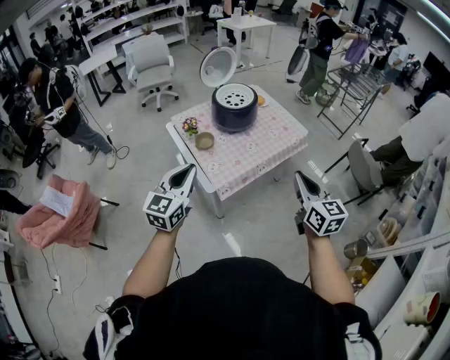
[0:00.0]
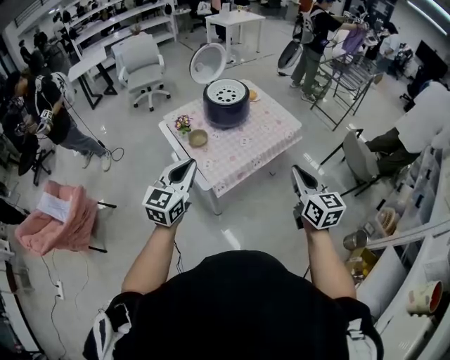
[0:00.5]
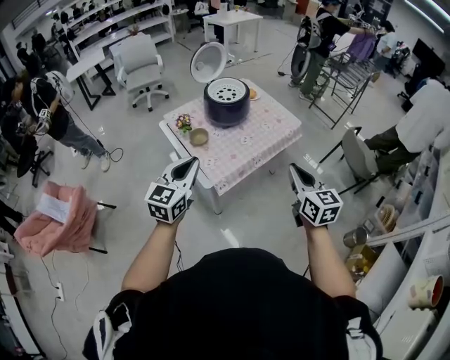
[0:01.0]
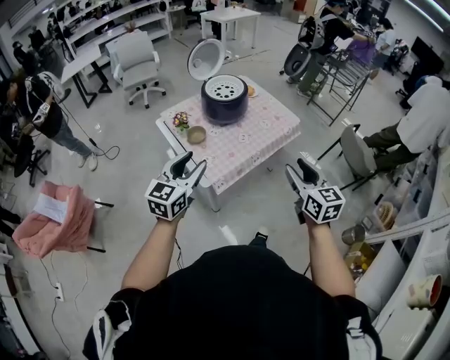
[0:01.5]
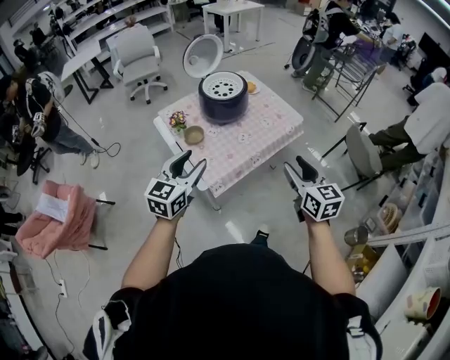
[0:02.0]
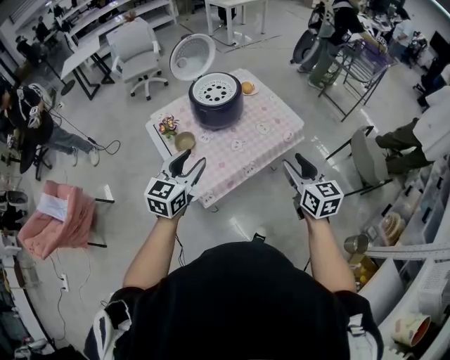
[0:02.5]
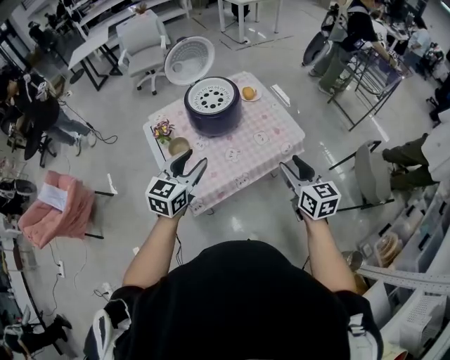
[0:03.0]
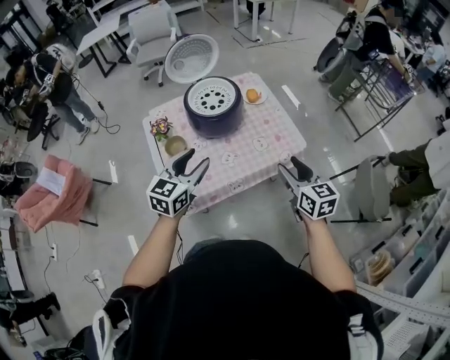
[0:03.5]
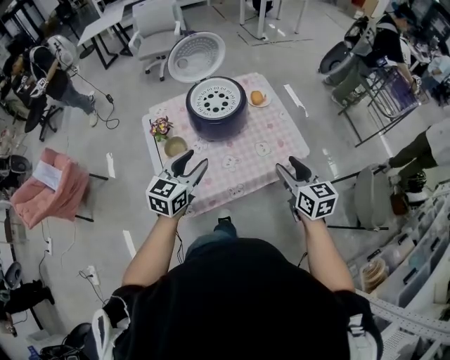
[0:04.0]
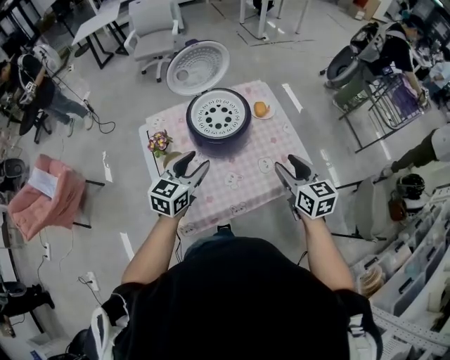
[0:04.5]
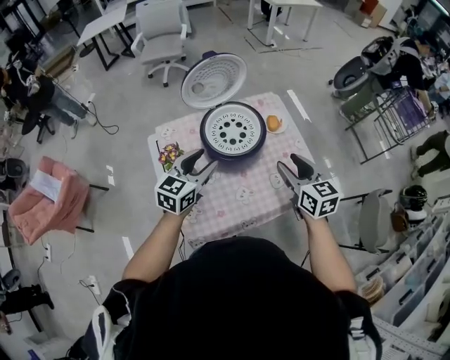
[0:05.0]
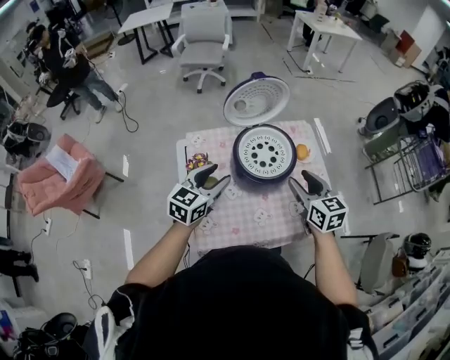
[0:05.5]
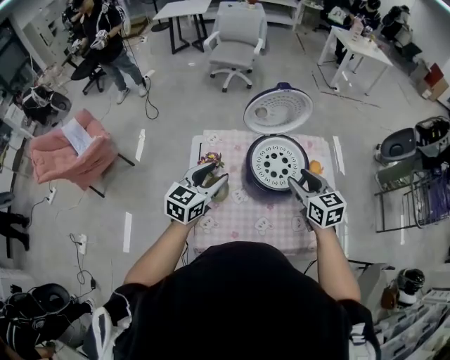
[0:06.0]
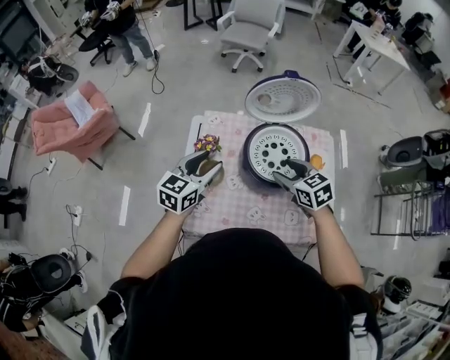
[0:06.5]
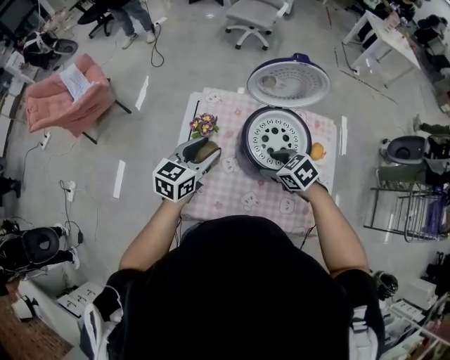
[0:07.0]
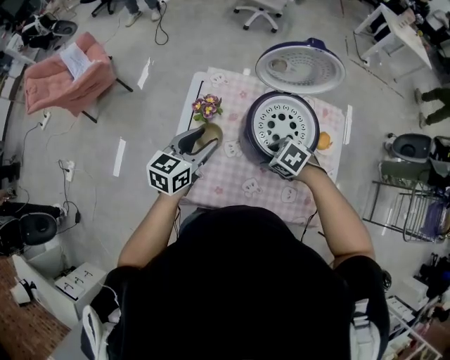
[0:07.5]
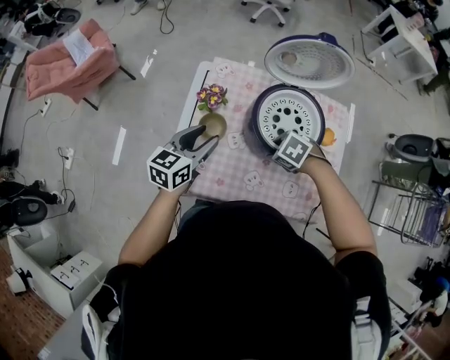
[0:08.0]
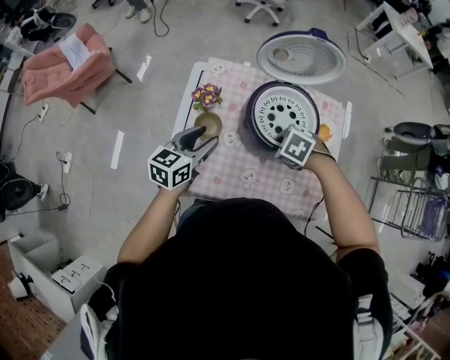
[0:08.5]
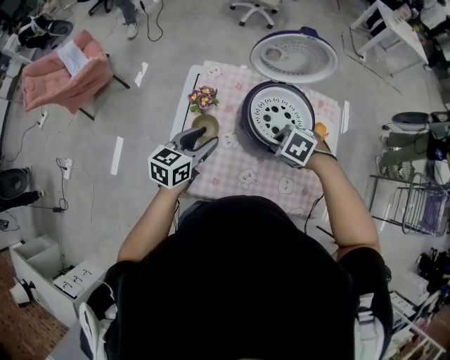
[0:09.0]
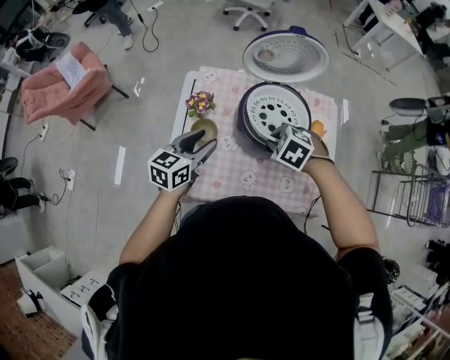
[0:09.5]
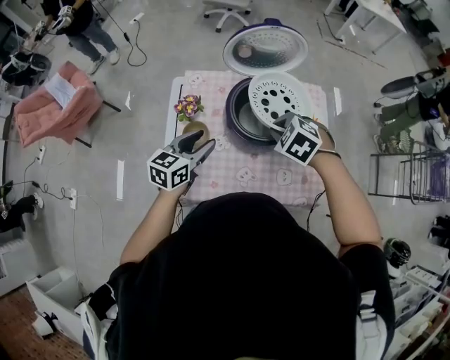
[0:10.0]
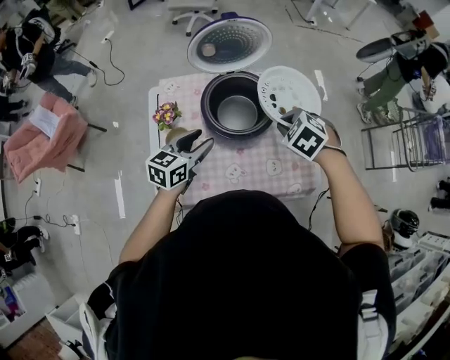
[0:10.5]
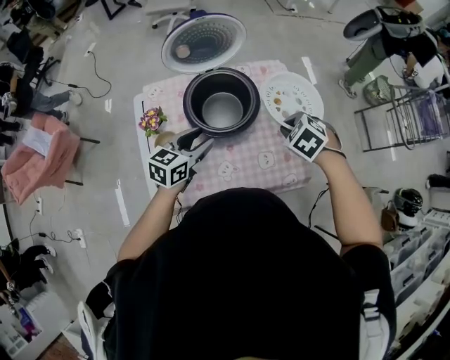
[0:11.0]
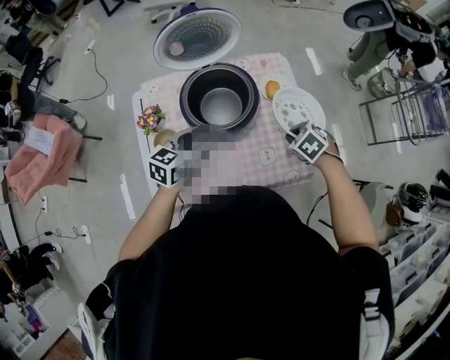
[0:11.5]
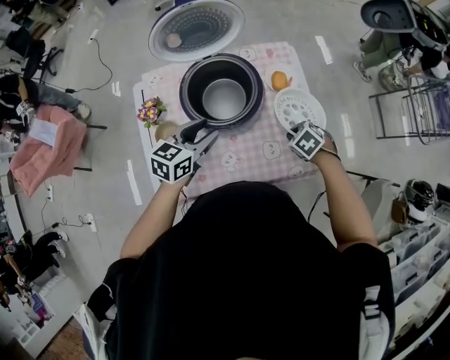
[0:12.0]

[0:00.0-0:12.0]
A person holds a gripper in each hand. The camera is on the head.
0:00.0 to 0:02.0: Both grippers move forward, approximately 10 cm. The left gripper opens its fingers. Meanwhile the right gripper opens its fingers.
0:02.0 to 0:04.0: The grippers both shift forward and to the right by roughly 30 cm. The right gripper rotates some 20 degrees.
0:04.0 to 0:06.0: The two grippers go approximately 30 cm forward and to the left. The right gripper turns by roughly 20 degrees.
0:06.0 to 0:08.0: The left gripper is displaced downward by about 10 cm, and swivels approximately 20 degrees. Meanwhile the right gripper moves downward, approximately 20 cm, and tips its fingers downward by about 50 degrees.
0:08.0 to 0:10.0: The right gripper heads upward, covering approximately 10 cm, changes its angle by approximately 20 degrees, and closes up. The left gripper changes place by about 5 cm.
0:10.0 to 0:12.0: The right gripper ends up approximately 30 cm from where it was, and swivels approximately 30 degrees; the left gripper changes place by some 15 cm.

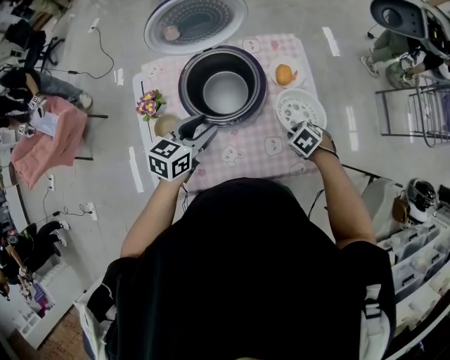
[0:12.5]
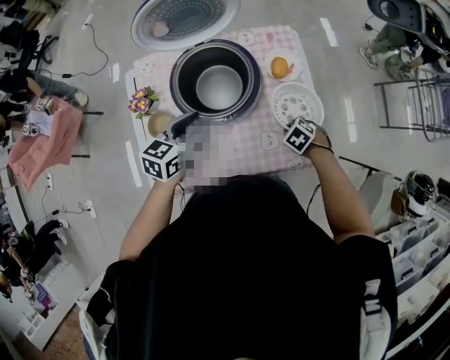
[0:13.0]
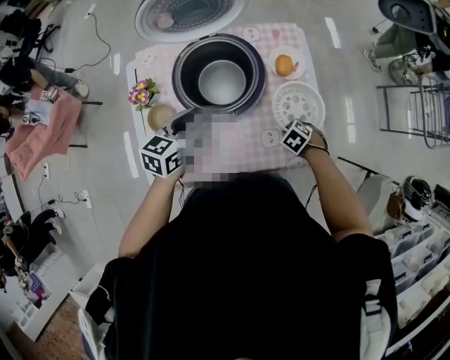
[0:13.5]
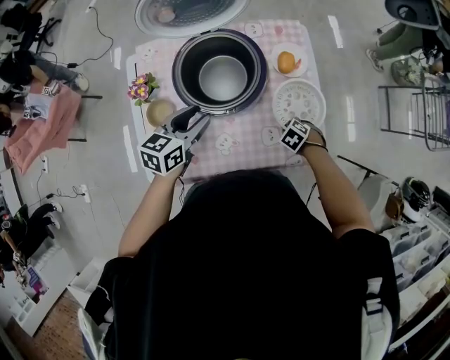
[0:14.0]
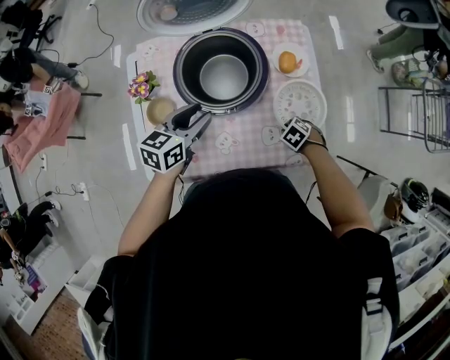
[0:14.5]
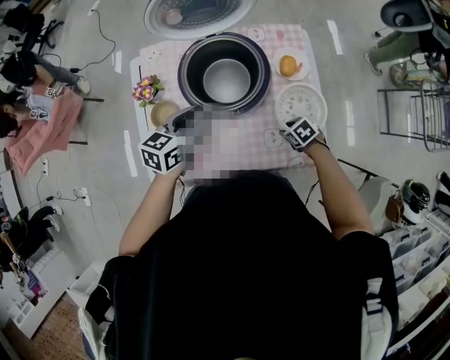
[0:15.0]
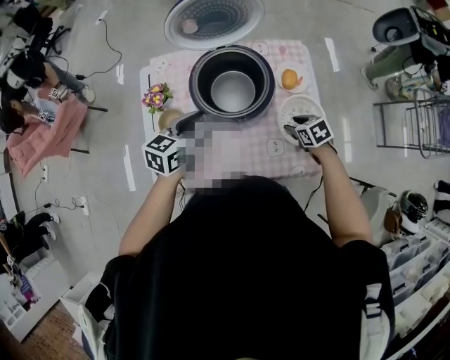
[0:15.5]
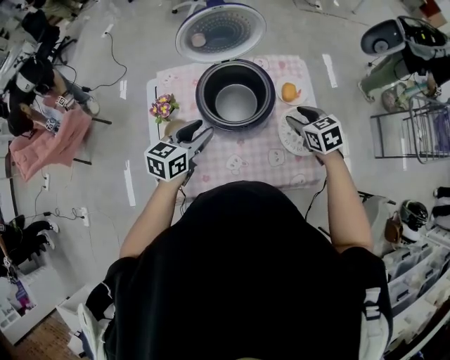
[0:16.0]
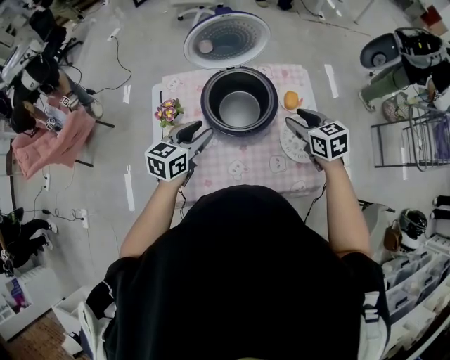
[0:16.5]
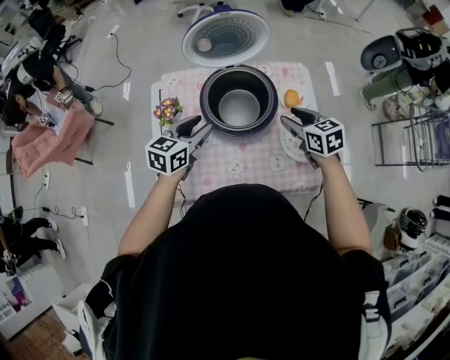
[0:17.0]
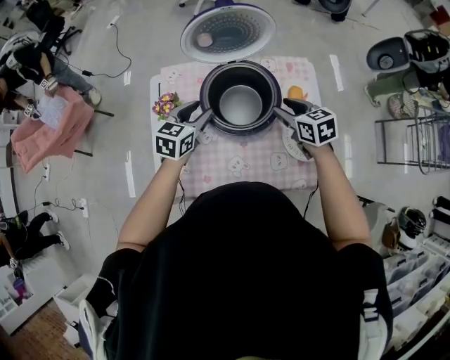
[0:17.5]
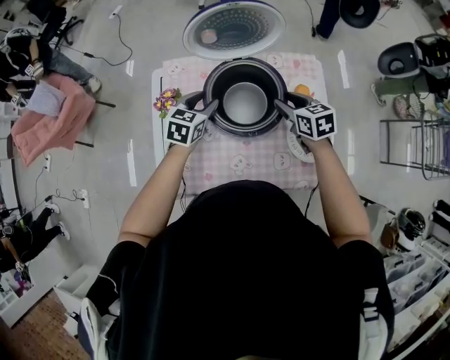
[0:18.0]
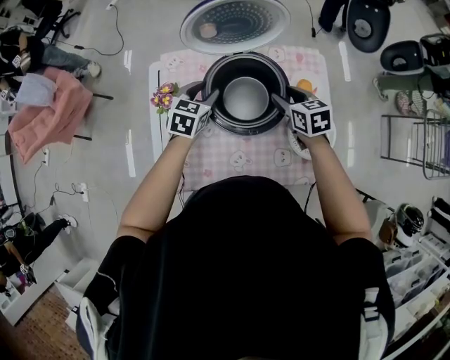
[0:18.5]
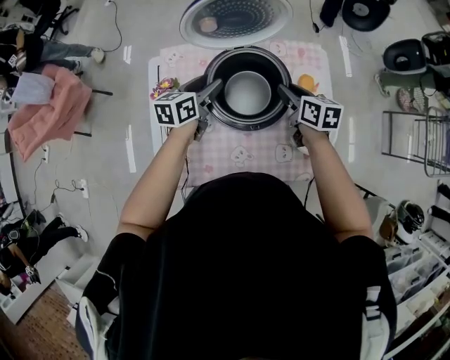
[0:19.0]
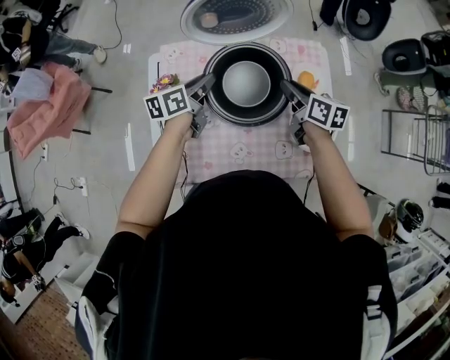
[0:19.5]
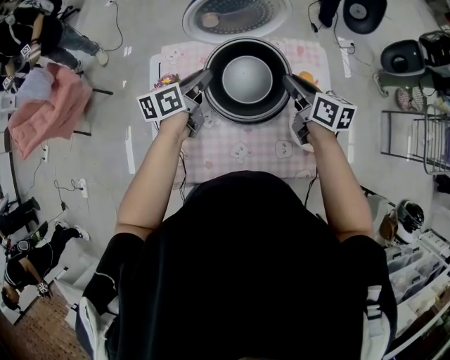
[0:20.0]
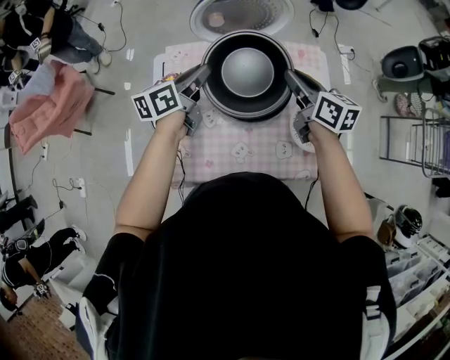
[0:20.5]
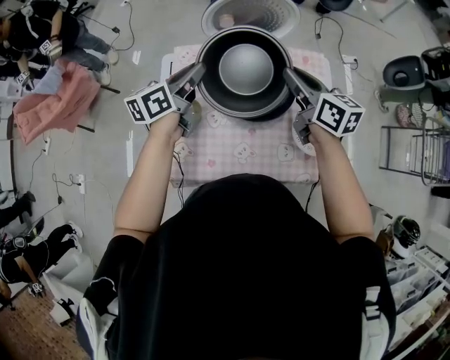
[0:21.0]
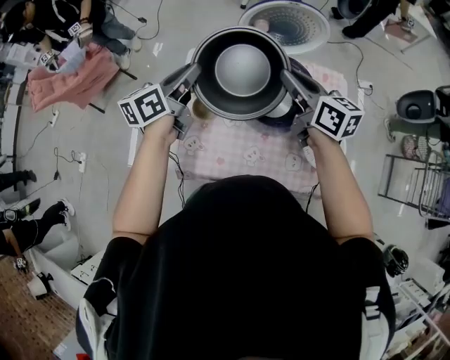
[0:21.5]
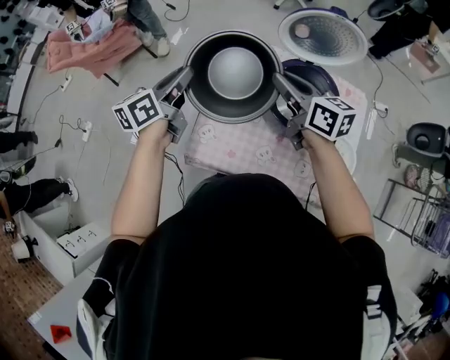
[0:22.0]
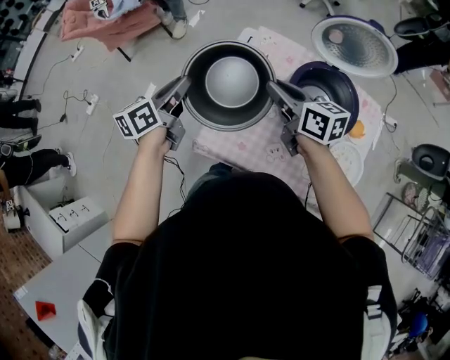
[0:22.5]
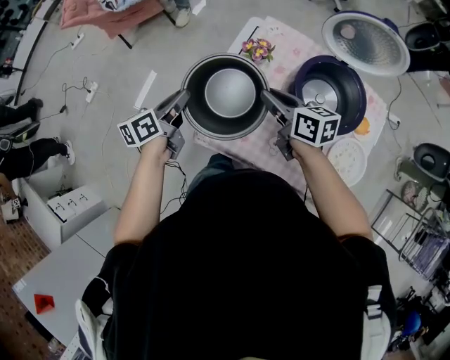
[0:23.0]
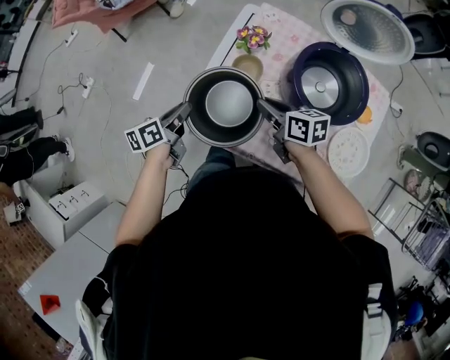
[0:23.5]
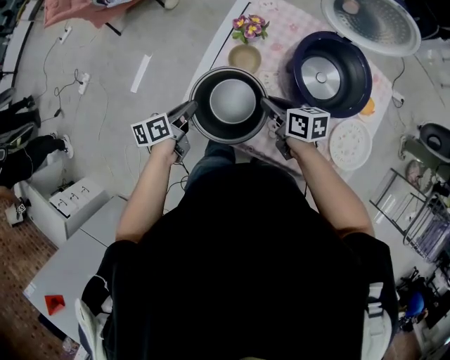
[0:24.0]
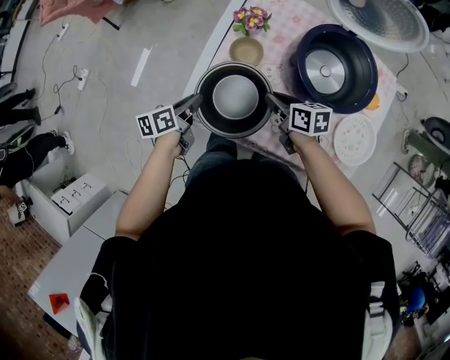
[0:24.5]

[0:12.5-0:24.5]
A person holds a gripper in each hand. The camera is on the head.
0:12.5 to 0:14.5: The right gripper shifts roughly 10 cm downward.
0:14.5 to 0:16.5: The right gripper moves upward, roughly 30 cm, points its fingers roughly 40 degrees further upward, and opens up, while the left gripper moves upward, approximately 5 cm.
0:16.5 to 0:18.5: The right gripper moves forward, downward and to the left, some 15 cm, while the left gripper goes about 15 cm forward and downward, and rotates about 20 degrees.
0:18.5 to 0:20.5: Both grippers move upward, approximately 10 cm. The left gripper changes its angle by roughly 50 degrees, and closes up. Meanwhile the right gripper rotates some 30 degrees, and closes up.
0:20.5 to 0:22.5: The right gripper ends up about 30 cm from where it was, and swivels about 40 degrees. Meanwhile the left gripper reaches about 10 cm upward, then returns, and swivels some 30 degrees.
0:22.5 to 0:24.5: The left gripper travels downward and backward by roughly 25 cm, and swivels some 20 degrees, while the right gripper is displaced downward by some 20 cm, and turns by roughly 20 degrees.

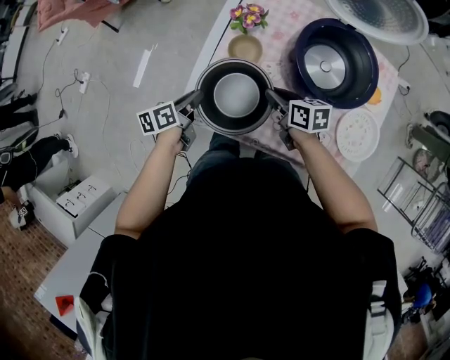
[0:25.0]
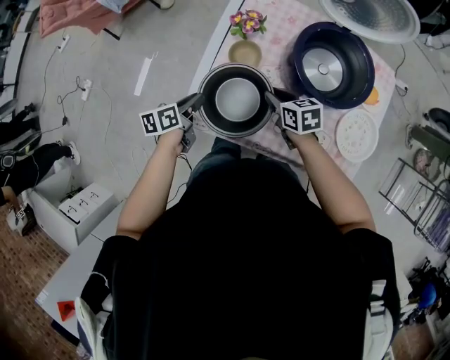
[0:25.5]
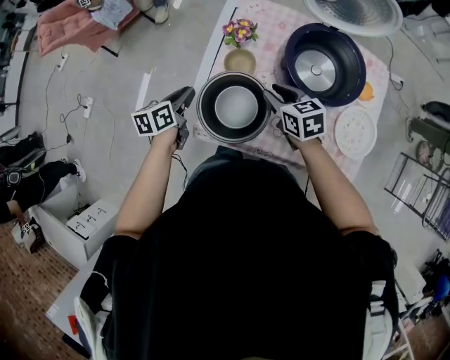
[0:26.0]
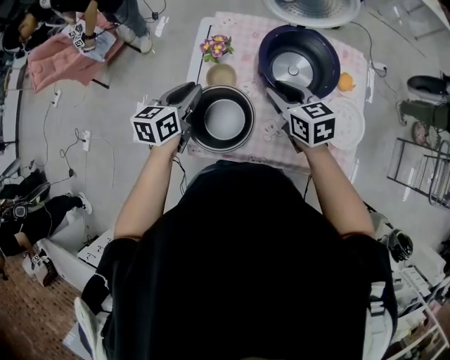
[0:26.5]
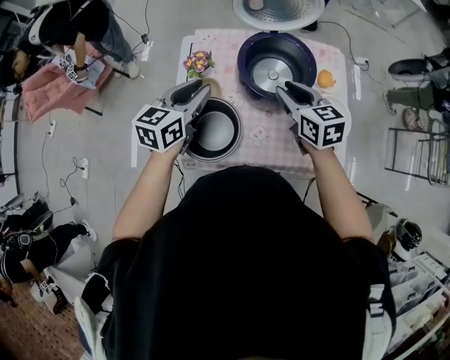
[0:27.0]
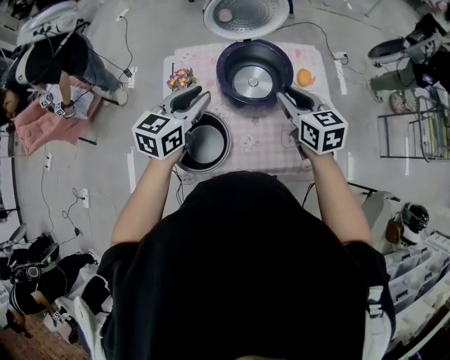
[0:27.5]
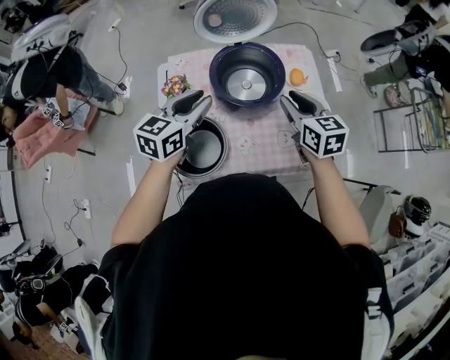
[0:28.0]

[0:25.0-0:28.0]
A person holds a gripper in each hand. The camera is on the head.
0:25.0 to 0:26.5: The left gripper shifts some 20 cm upward, to the right and forward, and swivels some 40 degrees, while the right gripper shifts about 15 cm upward and to the right, and rotates some 30 degrees.
0:26.5 to 0:28.0: The grippers both shift to the right and upward by about 20 cm. The right gripper changes its angle by approximately 30 degrees; the left gripper turns by some 30 degrees.
